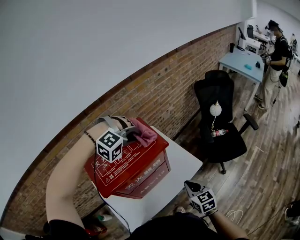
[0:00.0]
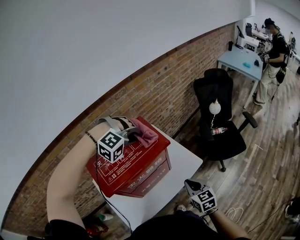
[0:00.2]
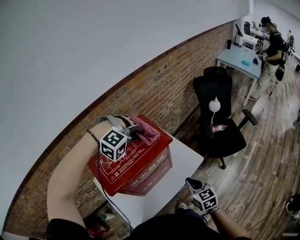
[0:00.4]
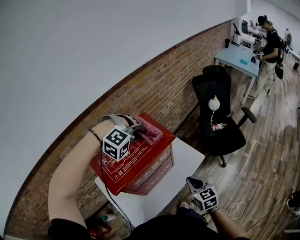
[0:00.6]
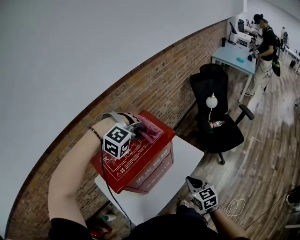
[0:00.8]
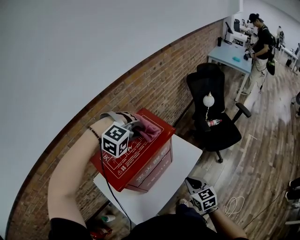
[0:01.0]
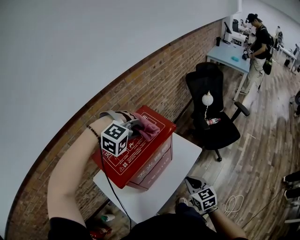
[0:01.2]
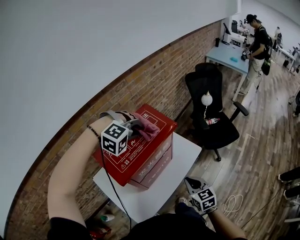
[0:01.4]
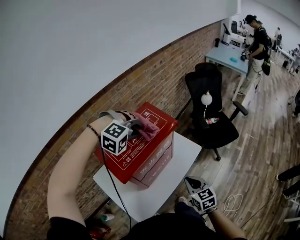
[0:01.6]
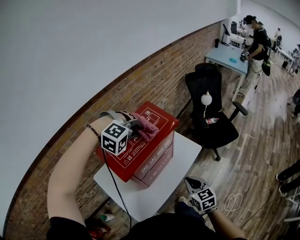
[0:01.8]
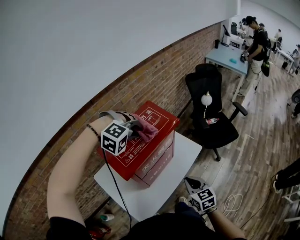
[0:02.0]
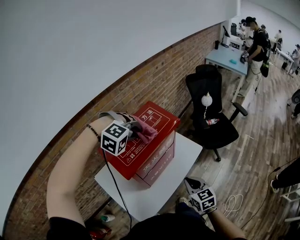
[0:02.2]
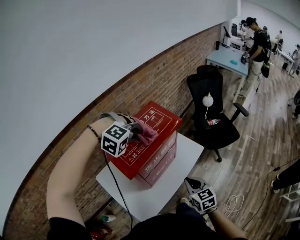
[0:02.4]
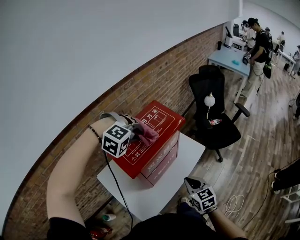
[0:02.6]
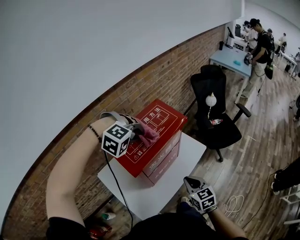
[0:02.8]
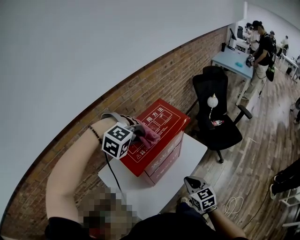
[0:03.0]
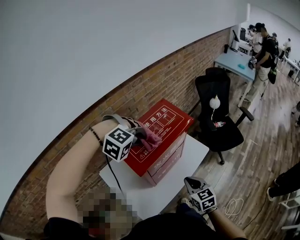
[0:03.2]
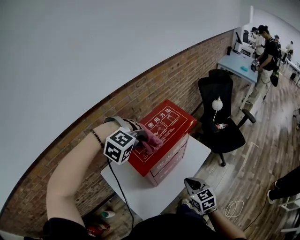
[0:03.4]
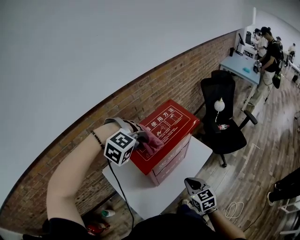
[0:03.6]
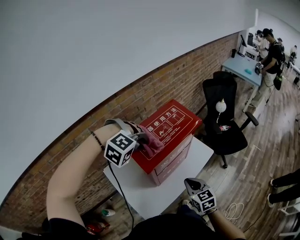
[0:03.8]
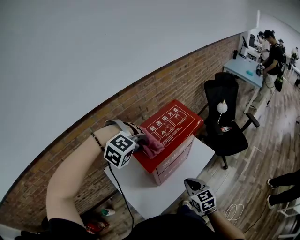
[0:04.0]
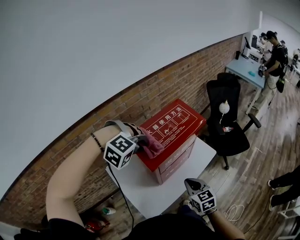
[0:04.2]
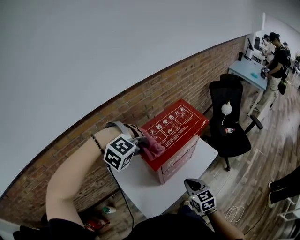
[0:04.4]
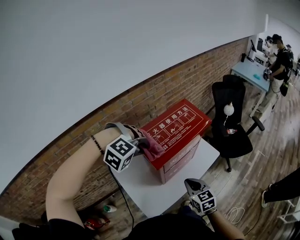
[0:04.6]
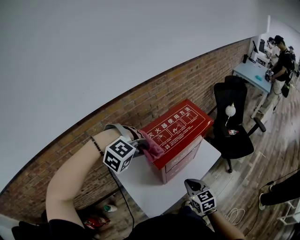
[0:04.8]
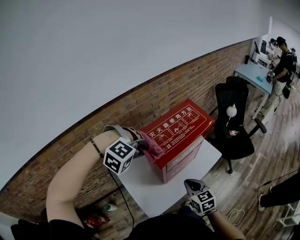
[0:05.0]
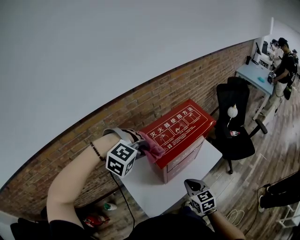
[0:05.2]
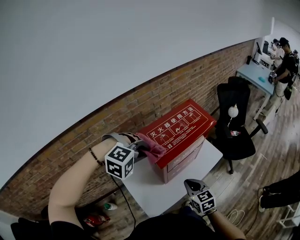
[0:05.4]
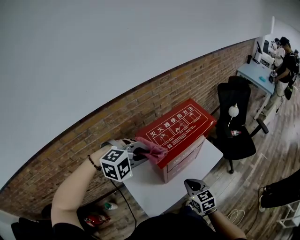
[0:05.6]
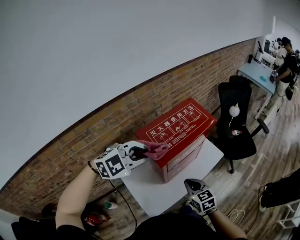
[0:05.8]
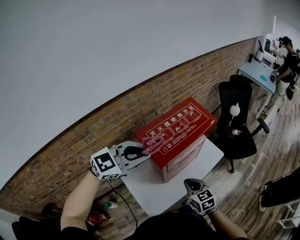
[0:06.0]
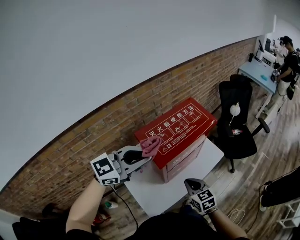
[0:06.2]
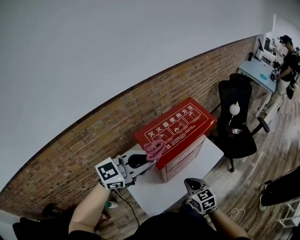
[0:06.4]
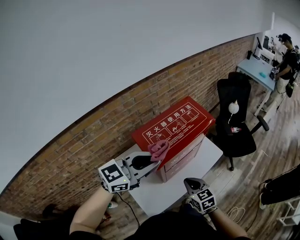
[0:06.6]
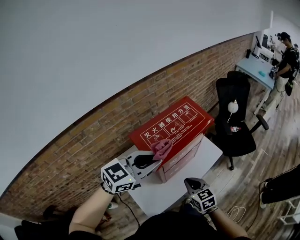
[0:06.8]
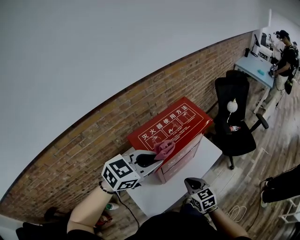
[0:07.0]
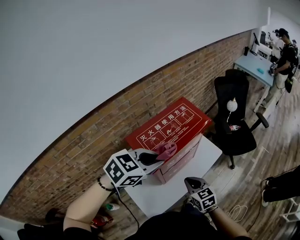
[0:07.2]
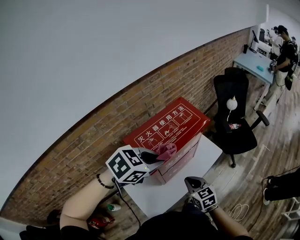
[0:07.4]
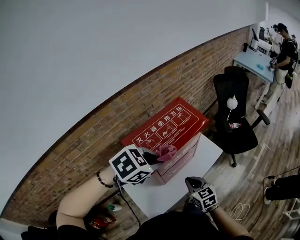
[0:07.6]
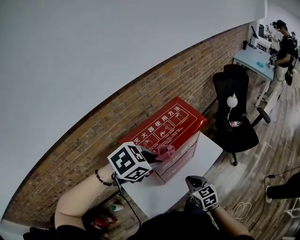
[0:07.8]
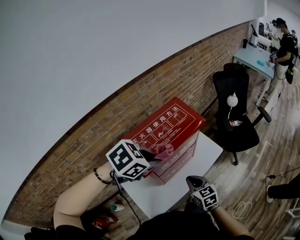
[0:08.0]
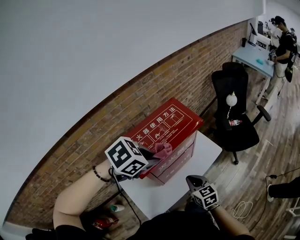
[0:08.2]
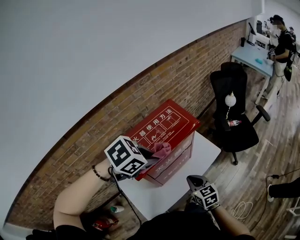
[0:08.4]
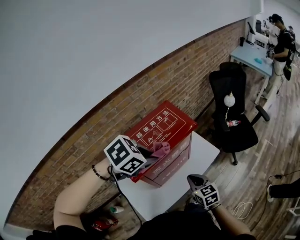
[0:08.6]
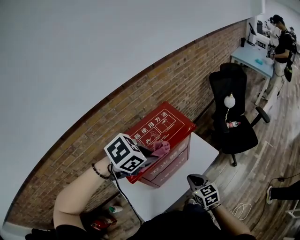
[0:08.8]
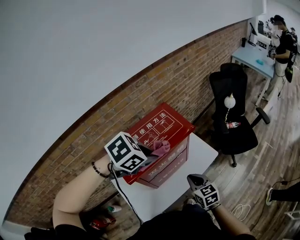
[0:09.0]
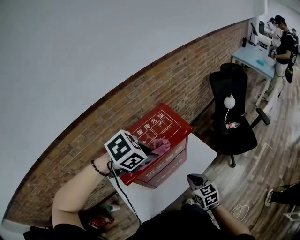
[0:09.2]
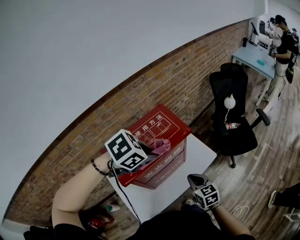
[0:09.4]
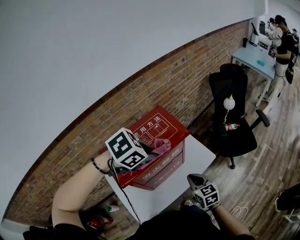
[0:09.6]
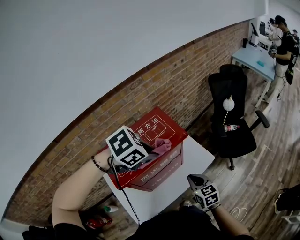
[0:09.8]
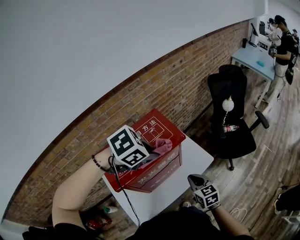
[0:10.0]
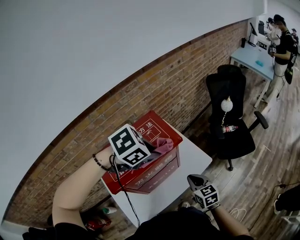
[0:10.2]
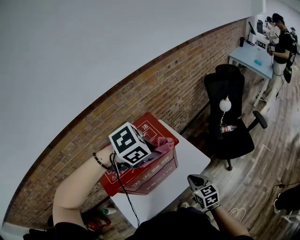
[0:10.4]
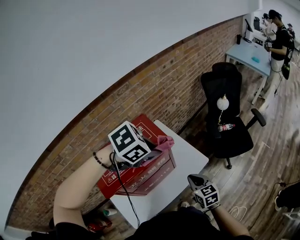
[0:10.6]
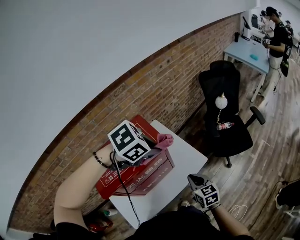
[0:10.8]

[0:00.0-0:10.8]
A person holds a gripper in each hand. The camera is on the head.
0:00.0 to 0:01.6: The right gripper heads backward and to the left, covering approximately 10 cm. Meanwhile the left gripper heads backward, covering about 5 cm.
0:01.6 to 0:03.0: The left gripper is displaced backward and to the left by some 10 cm. The right gripper moves to the left, approximately 5 cm.
0:03.0 to 0:04.6: The right gripper goes approximately 5 cm to the left, while the left gripper heads backward and to the left, covering approximately 10 cm.
0:04.6 to 0:06.2: The left gripper is displaced upward by roughly 10 cm, and angles its fingers upward, by roughly 60 degrees.
0:06.2 to 0:07.8: The right gripper changes place by approximately 5 cm, while the left gripper heads to the right, downward and forward, covering roughly 10 cm, and tips its fingers downward by some 50 degrees.
0:07.8 to 0:09.2: The right gripper is displaced forward and to the right by roughly 10 cm. The left gripper moves forward, roughly 10 cm.
0:09.2 to 0:10.8: The two grippers go some 10 cm forward and to the right.

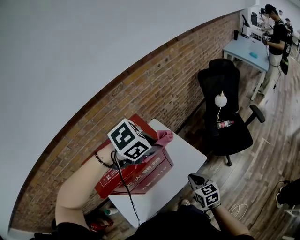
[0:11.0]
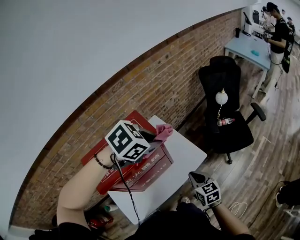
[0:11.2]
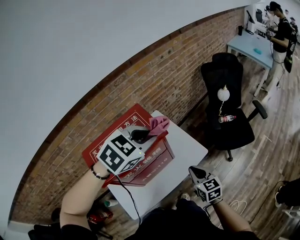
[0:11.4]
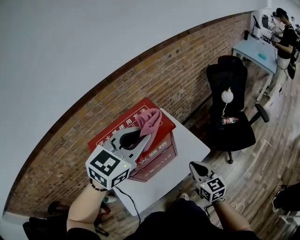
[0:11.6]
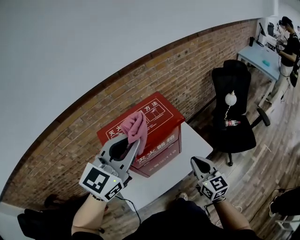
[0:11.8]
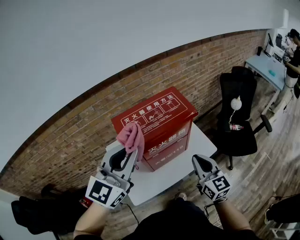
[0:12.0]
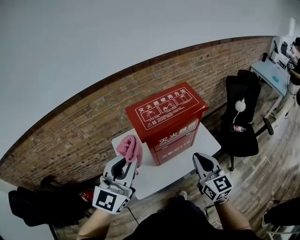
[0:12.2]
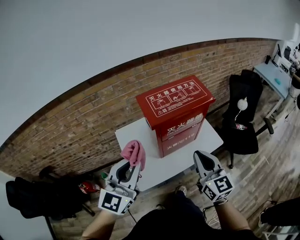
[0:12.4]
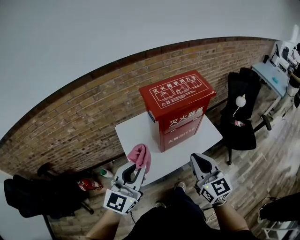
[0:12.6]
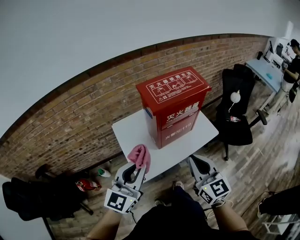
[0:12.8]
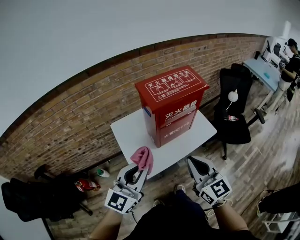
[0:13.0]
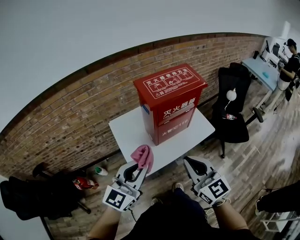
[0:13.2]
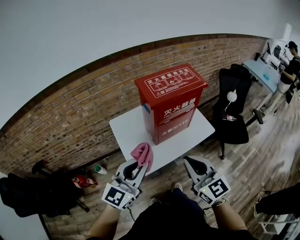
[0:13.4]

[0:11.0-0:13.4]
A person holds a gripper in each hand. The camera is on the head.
0:11.0 to 0:12.2: The left gripper changes place by approximately 40 cm, and tilts its fingers approximately 60 degrees upward, while the right gripper travels upward by approximately 20 cm, and rotates some 30 degrees.
0:12.2 to 0:13.4: The right gripper moves backward and to the left, about 20 cm. The left gripper heads backward and downward, covering about 15 cm.

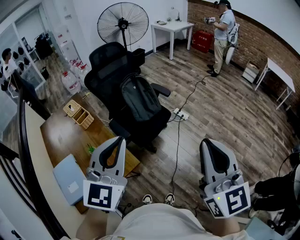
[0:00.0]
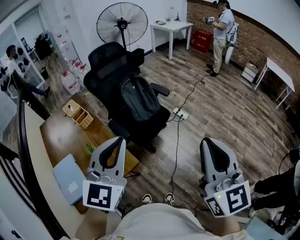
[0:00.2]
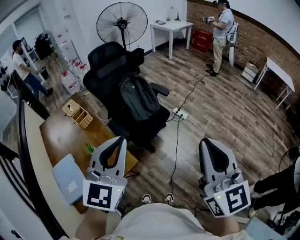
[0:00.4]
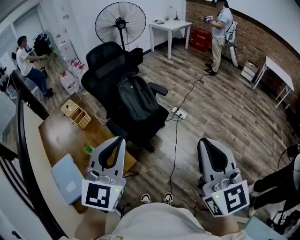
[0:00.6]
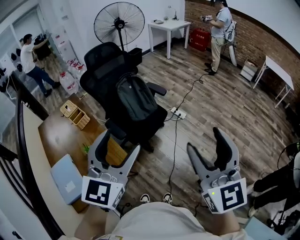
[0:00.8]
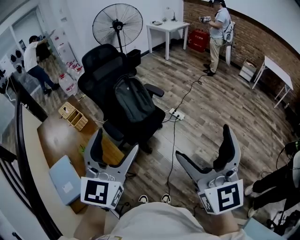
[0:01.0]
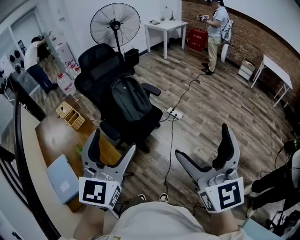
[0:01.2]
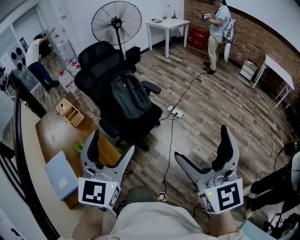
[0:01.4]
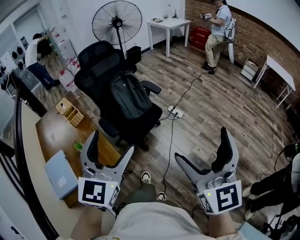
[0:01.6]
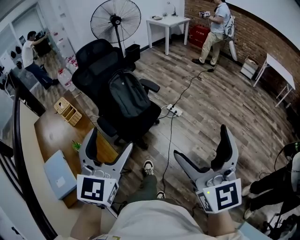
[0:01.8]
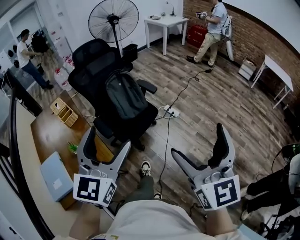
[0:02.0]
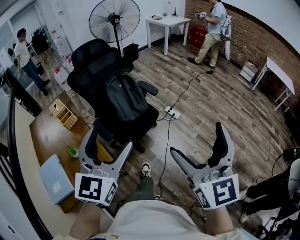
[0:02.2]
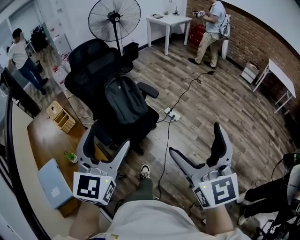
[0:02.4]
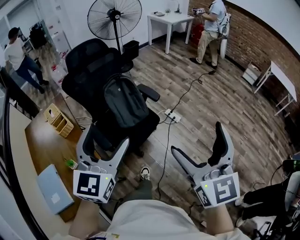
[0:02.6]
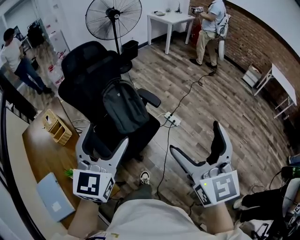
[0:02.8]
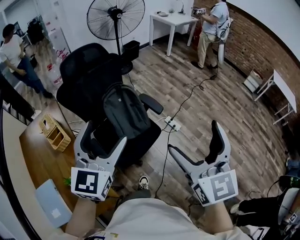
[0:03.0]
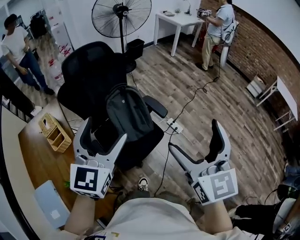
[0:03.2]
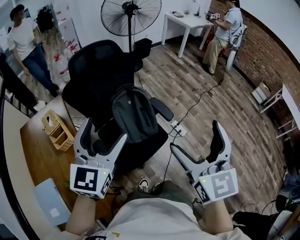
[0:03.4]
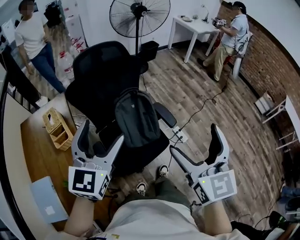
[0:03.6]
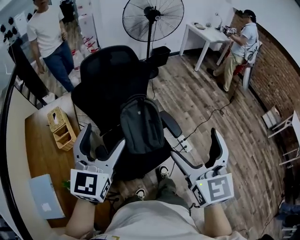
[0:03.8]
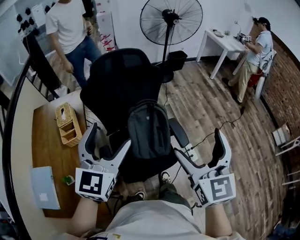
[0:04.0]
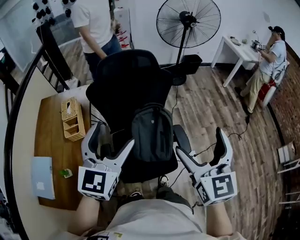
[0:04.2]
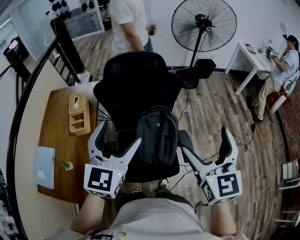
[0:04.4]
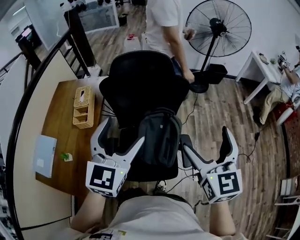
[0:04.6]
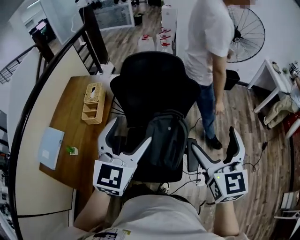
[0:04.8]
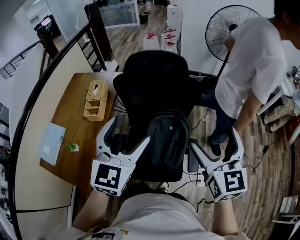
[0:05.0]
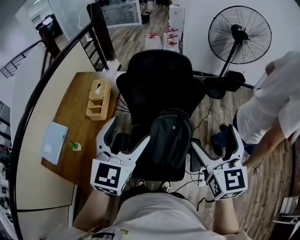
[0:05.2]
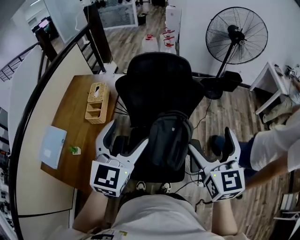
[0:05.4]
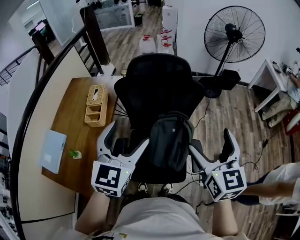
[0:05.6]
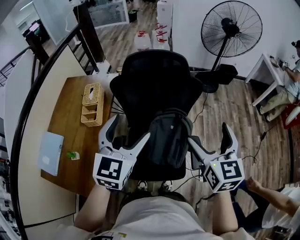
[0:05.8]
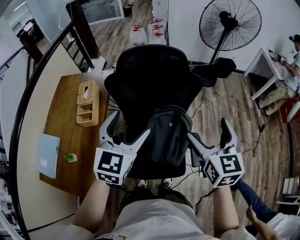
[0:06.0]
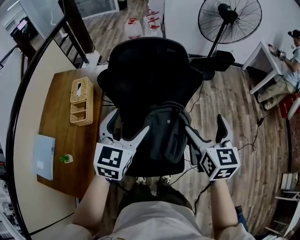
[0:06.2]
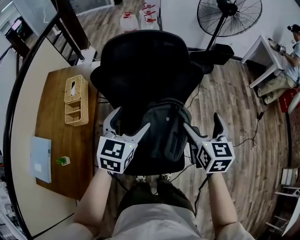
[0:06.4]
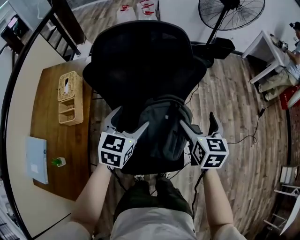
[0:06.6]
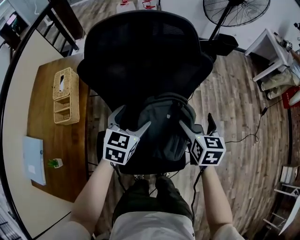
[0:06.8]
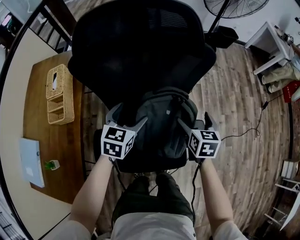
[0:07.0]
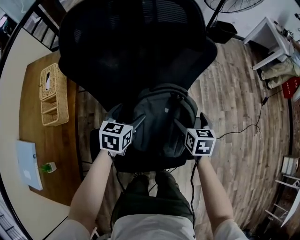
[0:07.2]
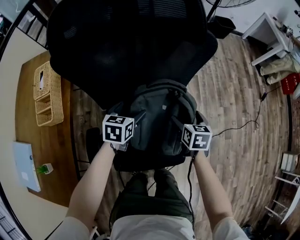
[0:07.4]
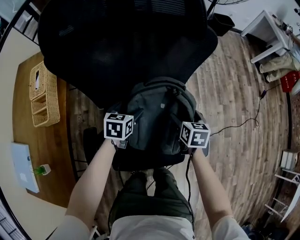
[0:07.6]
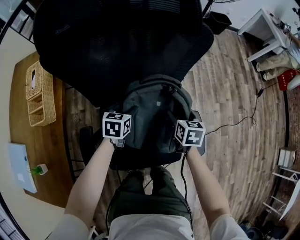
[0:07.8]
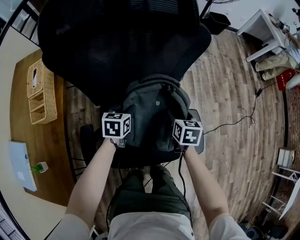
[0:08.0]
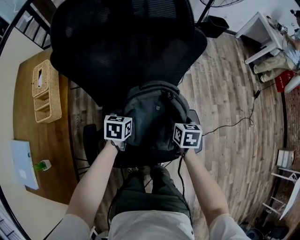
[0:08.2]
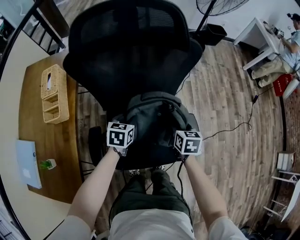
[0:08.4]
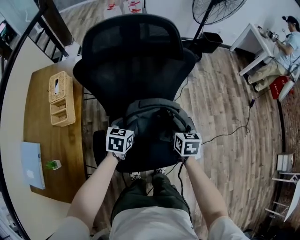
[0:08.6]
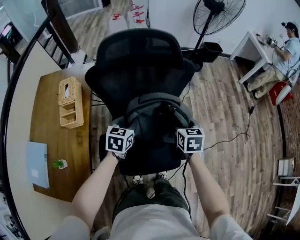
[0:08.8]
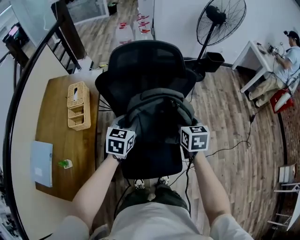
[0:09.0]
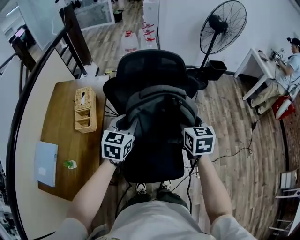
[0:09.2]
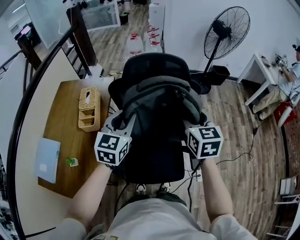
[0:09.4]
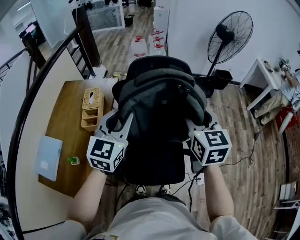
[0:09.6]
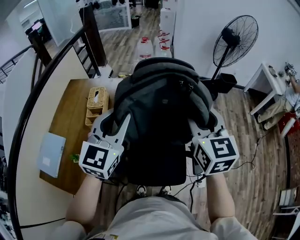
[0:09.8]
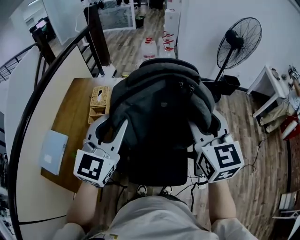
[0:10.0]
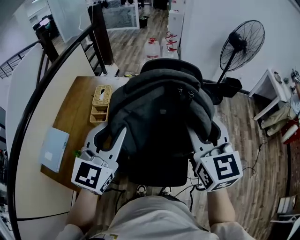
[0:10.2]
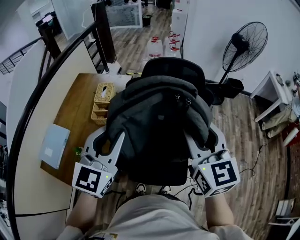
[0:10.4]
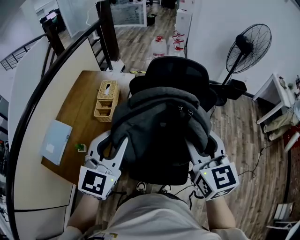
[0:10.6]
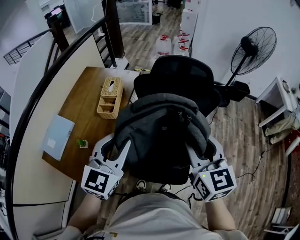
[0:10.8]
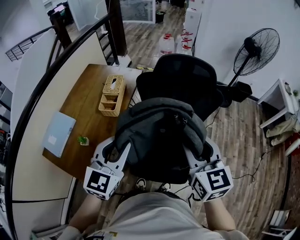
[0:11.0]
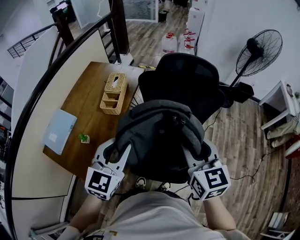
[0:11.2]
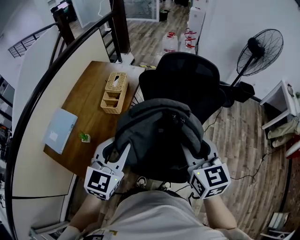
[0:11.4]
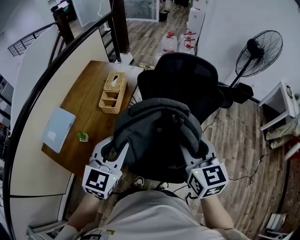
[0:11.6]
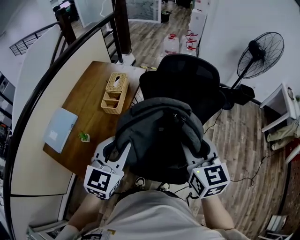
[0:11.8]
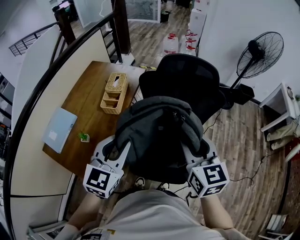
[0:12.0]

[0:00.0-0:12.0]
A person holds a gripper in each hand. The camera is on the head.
0:00.0 to 0:01.6: The grippers both shift to the right by approximately 10 cm. The right gripper opens its fingers, while the left gripper opens its fingers.
0:01.6 to 0:03.0: The grippers both shift forward by approximately 35 cm.
0:03.0 to 0:04.4: The left gripper shifts by roughly 20 cm, and rotates roughly 30 degrees; the right gripper changes place by some 35 cm, and swivels some 30 degrees.
0:04.4 to 0:06.0: Both grippers move forward and downward, approximately 10 cm.
0:06.0 to 0:07.6: Both grippers travel together downward, approximately 40 cm. The right gripper turns by some 40 degrees. Meanwhile the left gripper angles its fingers downward, by approximately 30 degrees.
0:07.6 to 0:09.0: Both grippers travel together upward, some 30 cm. The left gripper closes up, while the right gripper closes up.
0:09.0 to 0:10.4: The right gripper travels upward by about 25 cm, and swivels about 40 degrees, while the left gripper heads upward and backward, covering about 30 cm, and turns by roughly 30 degrees.
0:10.4 to 0:12.0: The grippers both shift downward by approximately 10 cm.
